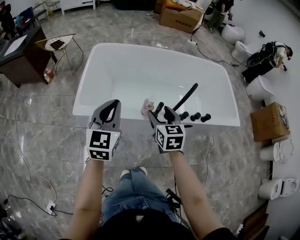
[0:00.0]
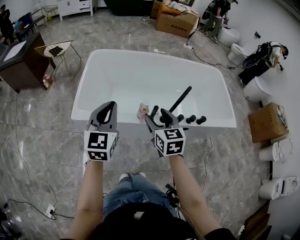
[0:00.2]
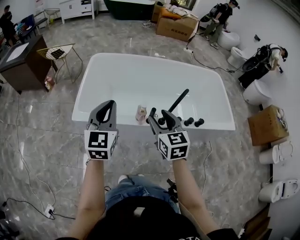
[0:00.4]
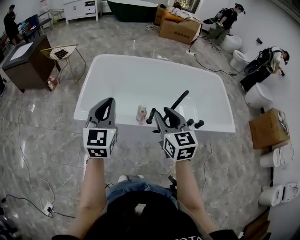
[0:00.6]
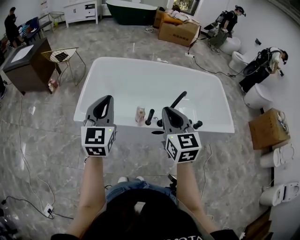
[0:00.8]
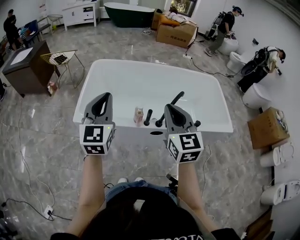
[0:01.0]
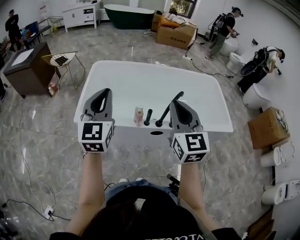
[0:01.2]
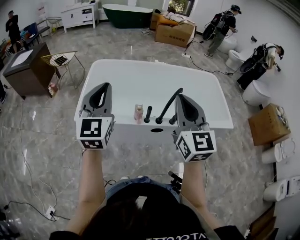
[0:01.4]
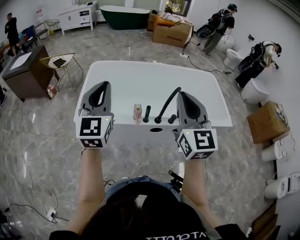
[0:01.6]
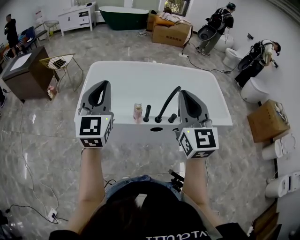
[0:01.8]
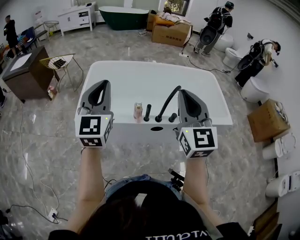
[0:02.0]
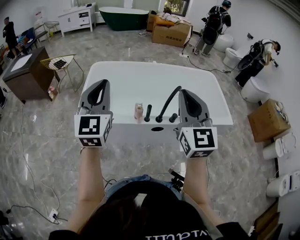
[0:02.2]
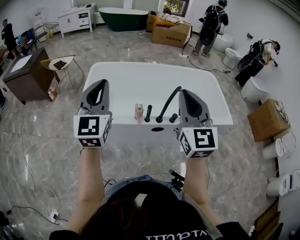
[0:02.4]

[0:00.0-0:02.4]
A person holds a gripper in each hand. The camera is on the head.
0:00.0 to 0:01.2: The left gripper heads upward, covering some 15 cm. The right gripper shifts roughly 25 cm upward and backward, swivels approximately 30 degrees, and closes its fingers.
0:01.2 to 0:02.4: The right gripper moves upward, approximately 5 cm; the left gripper shifts by about 5 cm.

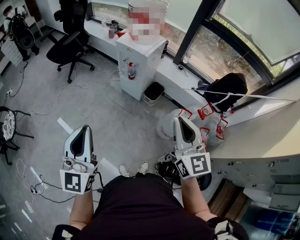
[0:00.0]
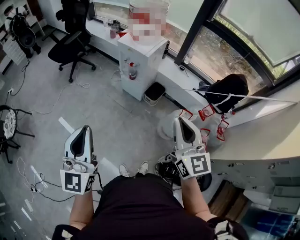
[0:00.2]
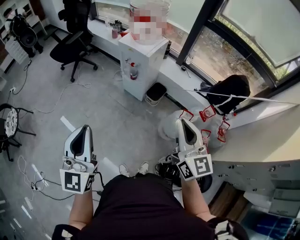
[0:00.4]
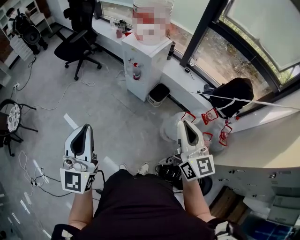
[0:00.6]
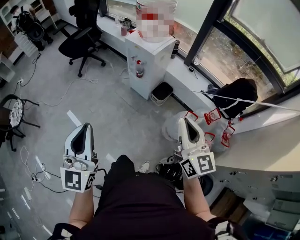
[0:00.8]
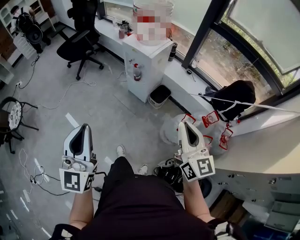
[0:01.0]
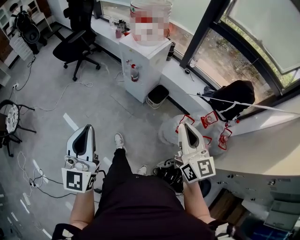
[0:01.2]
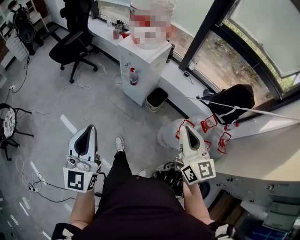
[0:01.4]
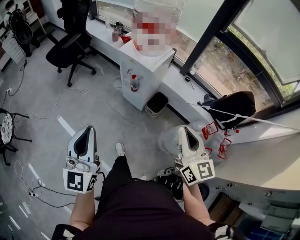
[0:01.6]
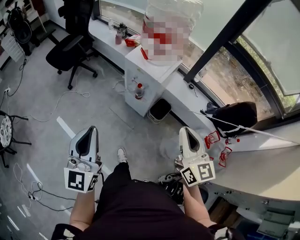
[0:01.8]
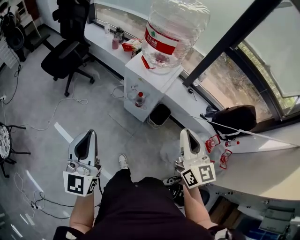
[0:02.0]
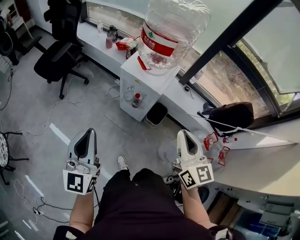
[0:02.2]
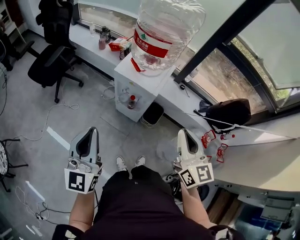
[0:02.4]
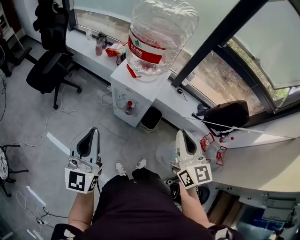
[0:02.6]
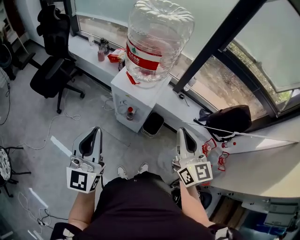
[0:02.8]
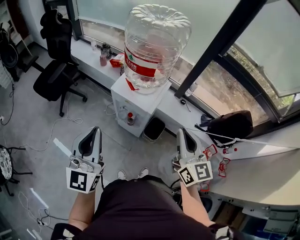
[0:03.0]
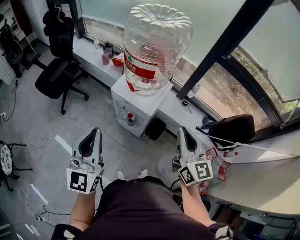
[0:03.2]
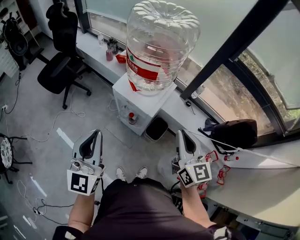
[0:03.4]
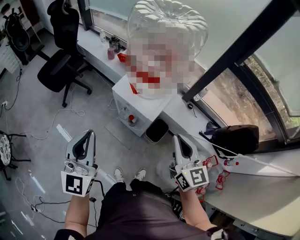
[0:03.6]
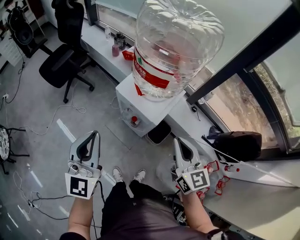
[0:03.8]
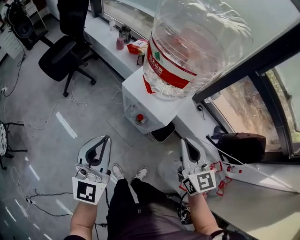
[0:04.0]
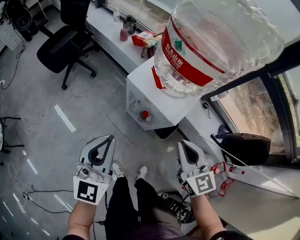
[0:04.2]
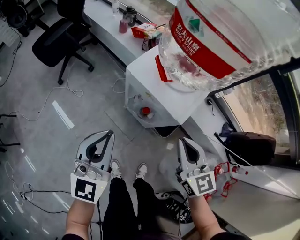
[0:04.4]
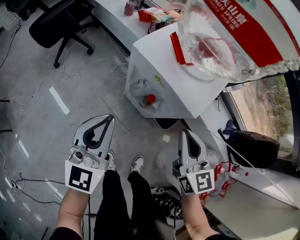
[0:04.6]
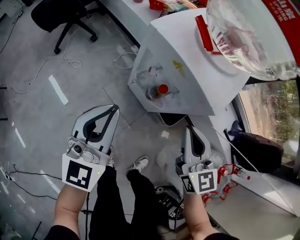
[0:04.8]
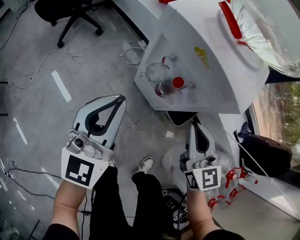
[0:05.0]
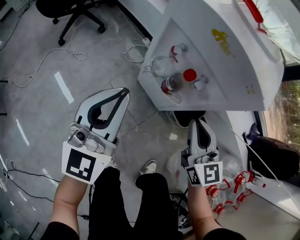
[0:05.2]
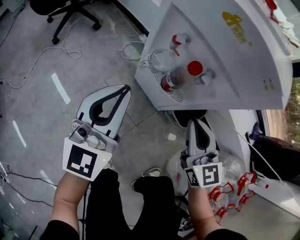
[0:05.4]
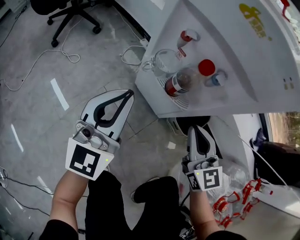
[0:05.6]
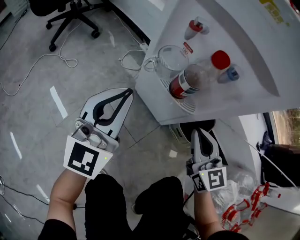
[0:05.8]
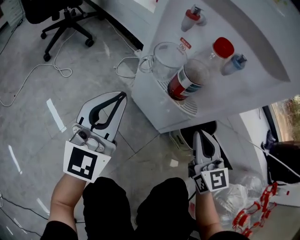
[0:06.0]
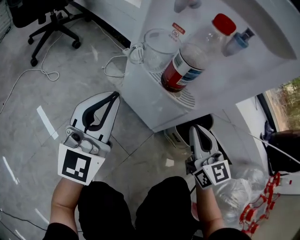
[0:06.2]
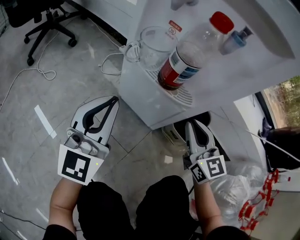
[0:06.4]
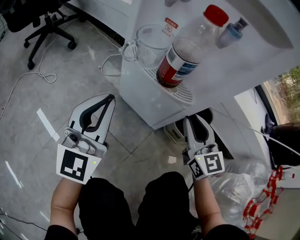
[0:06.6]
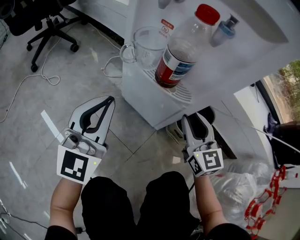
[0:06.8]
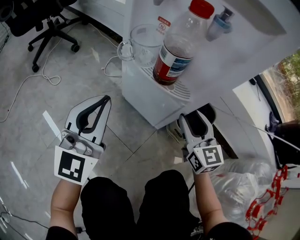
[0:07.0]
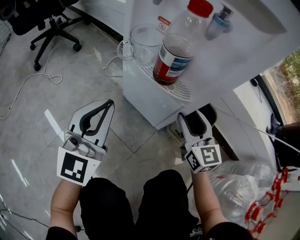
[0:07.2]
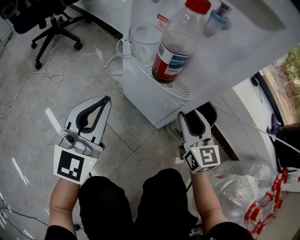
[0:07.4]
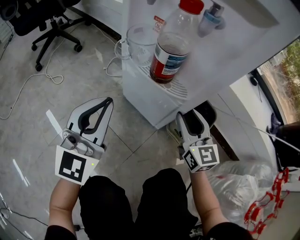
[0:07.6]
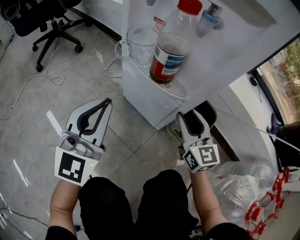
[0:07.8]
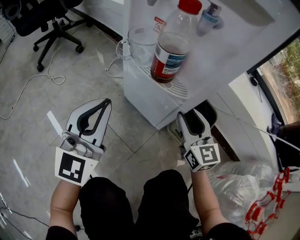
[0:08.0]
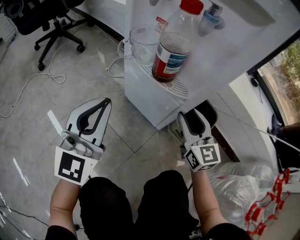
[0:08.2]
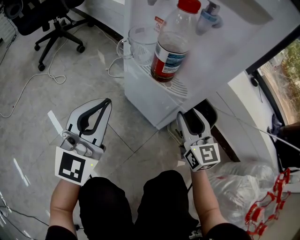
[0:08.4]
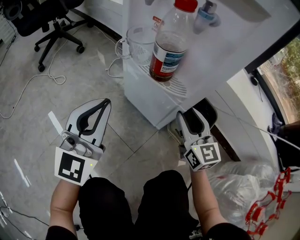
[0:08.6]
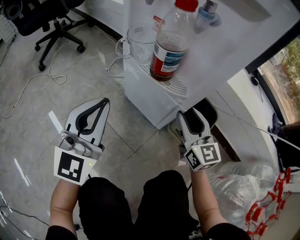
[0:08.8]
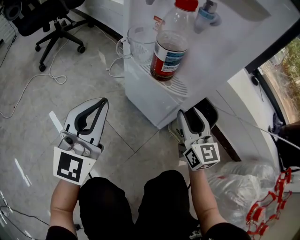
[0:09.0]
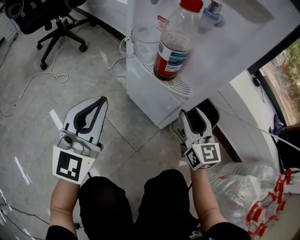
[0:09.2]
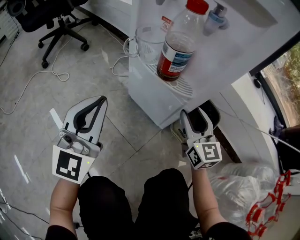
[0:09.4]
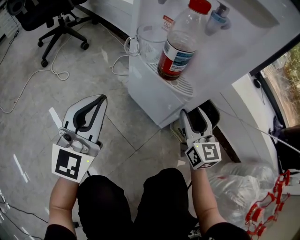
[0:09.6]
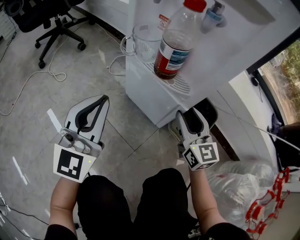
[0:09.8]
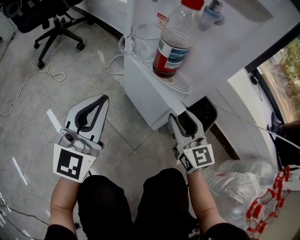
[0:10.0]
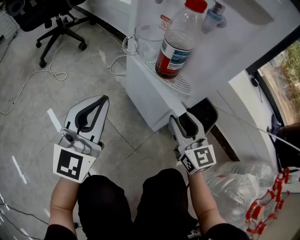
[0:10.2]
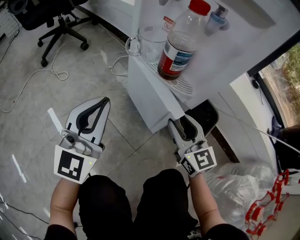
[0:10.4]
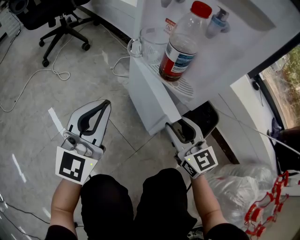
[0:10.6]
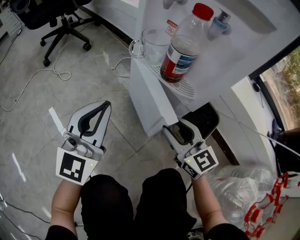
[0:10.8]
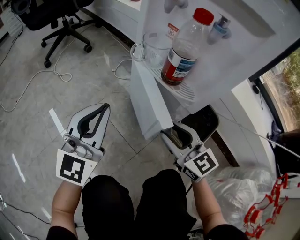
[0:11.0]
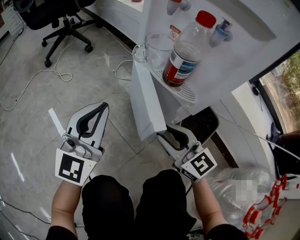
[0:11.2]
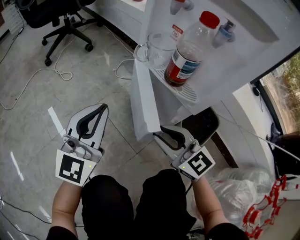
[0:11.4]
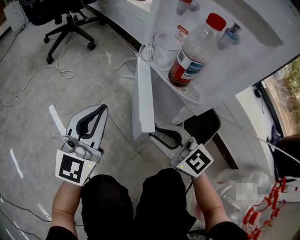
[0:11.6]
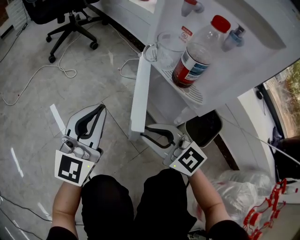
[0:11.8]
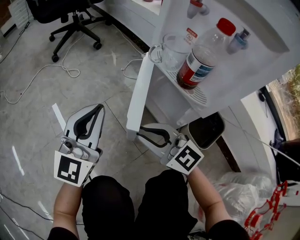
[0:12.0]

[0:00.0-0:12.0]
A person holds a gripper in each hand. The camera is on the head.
0:00.0 to 0:01.6: Both grippers travel together forward, some 15 cm.
0:01.6 to 0:03.0: Both grippers travel together forward, roughly 25 cm.
0:03.0 to 0:04.4: The two grippers go approximately 25 cm downward and forward. The right gripper turns by approximately 20 degrees.
0:04.4 to 0:06.0: The two grippers go roughly 40 cm downward.
0:06.0 to 0:07.6: The left gripper ends up approximately 5 cm from where it was. The right gripper shifts about 5 cm downward, and opens up.
0:07.6 to 0:09.0: The grippers make only small movements.
0:09.0 to 0:10.4: The right gripper goes approximately 5 cm to the left.
0:10.4 to 0:12.0: The left gripper travels to the left by some 5 cm, while the right gripper moves to the left, roughly 20 cm, rotates approximately 40 degrees, and closes up.

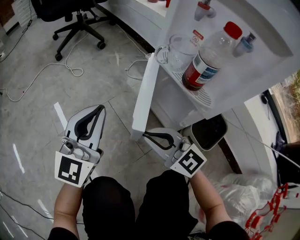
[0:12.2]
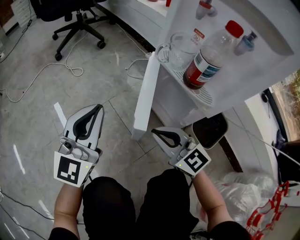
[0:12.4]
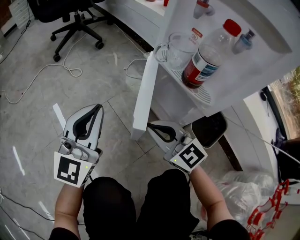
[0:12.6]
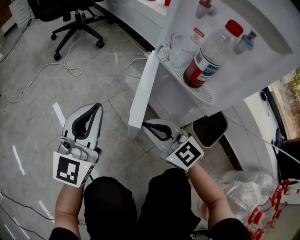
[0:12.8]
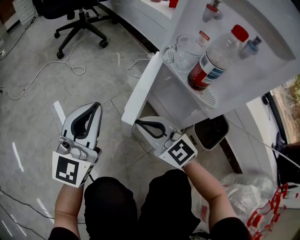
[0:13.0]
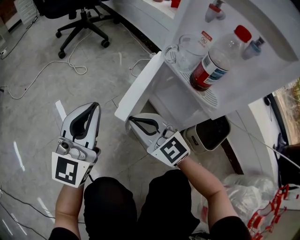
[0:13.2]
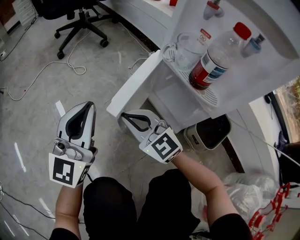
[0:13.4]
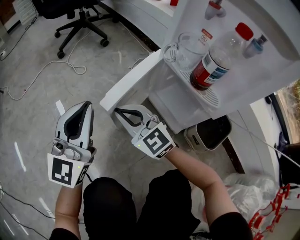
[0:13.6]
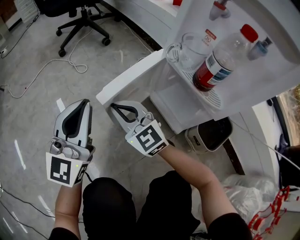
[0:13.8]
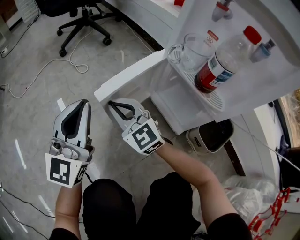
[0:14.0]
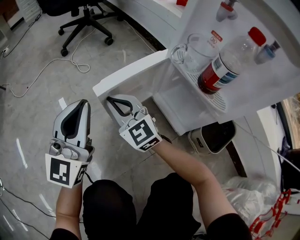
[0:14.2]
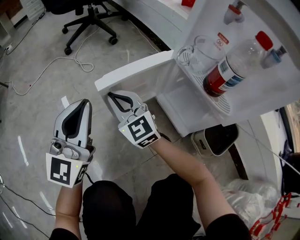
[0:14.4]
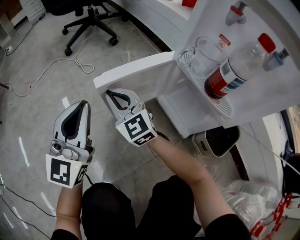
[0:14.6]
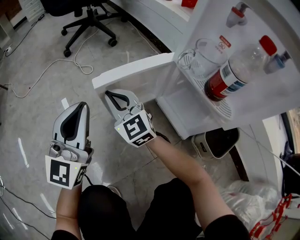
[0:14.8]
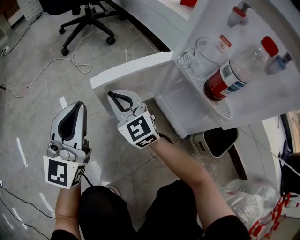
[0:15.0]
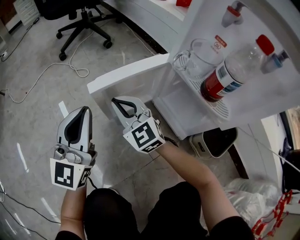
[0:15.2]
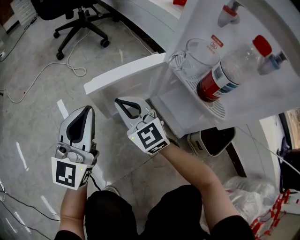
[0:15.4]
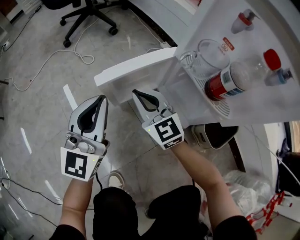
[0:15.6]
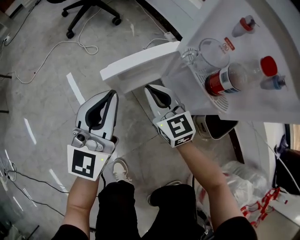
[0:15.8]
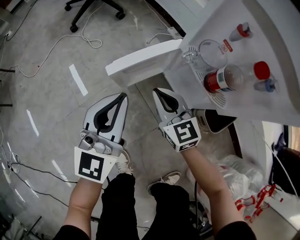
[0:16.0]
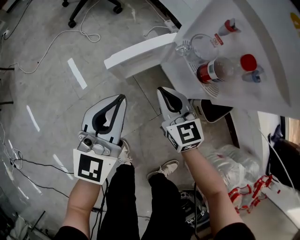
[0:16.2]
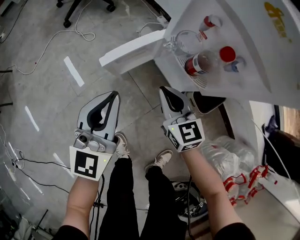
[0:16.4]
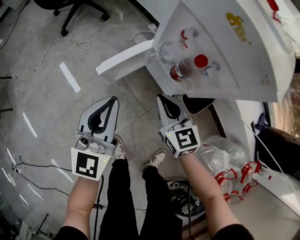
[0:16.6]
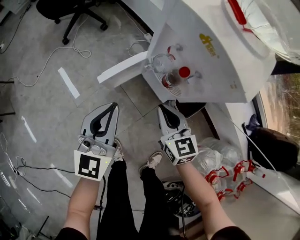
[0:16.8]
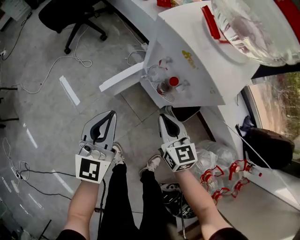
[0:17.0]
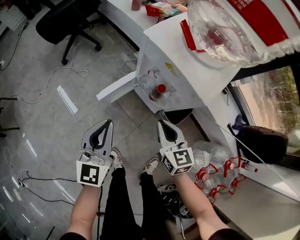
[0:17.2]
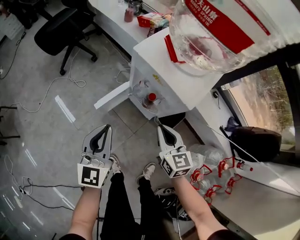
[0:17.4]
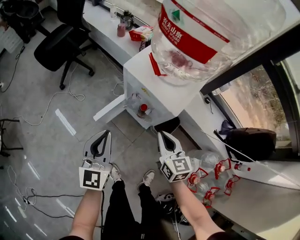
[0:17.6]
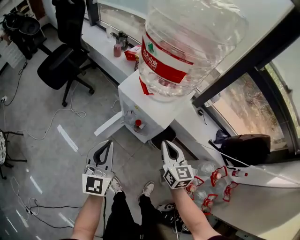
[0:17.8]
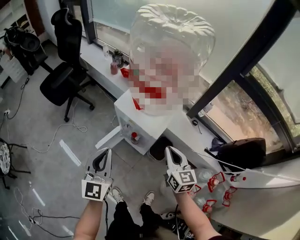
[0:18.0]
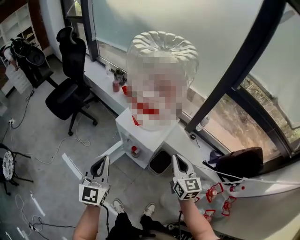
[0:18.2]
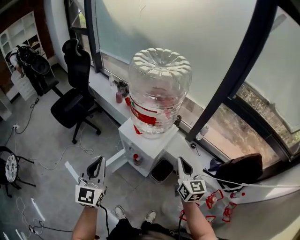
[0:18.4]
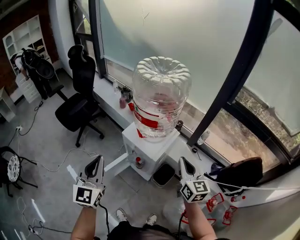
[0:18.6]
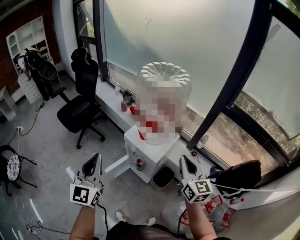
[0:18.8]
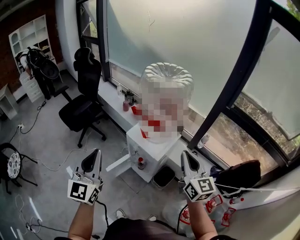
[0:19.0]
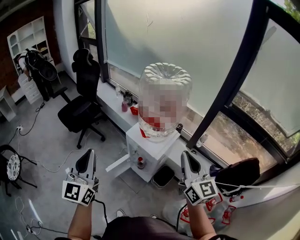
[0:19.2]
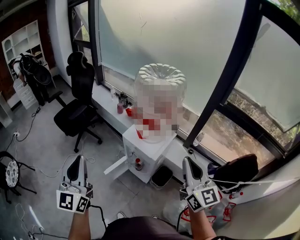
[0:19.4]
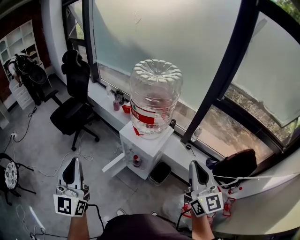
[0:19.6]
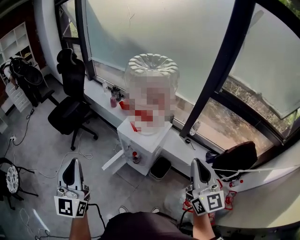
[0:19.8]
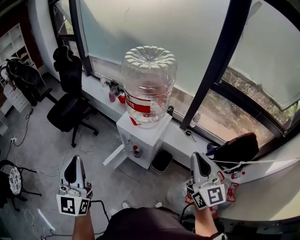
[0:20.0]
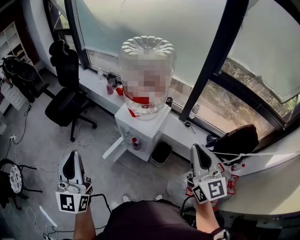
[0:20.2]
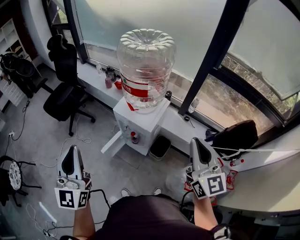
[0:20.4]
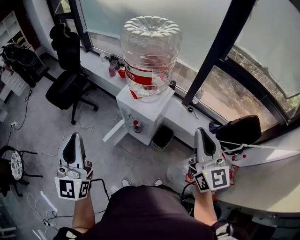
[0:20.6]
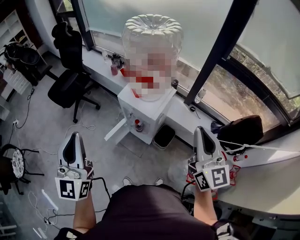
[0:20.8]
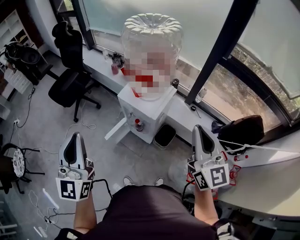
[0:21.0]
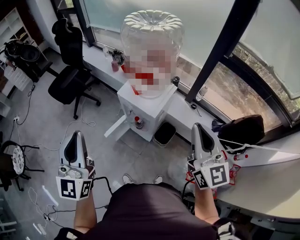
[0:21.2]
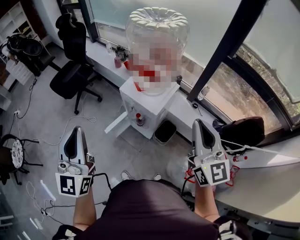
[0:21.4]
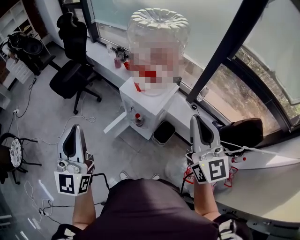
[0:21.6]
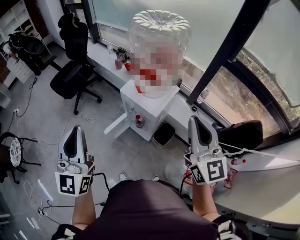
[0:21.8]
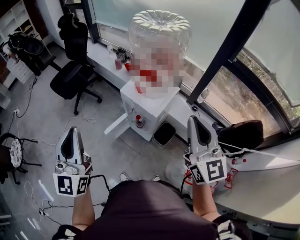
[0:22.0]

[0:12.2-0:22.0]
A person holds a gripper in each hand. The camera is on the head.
0:12.2 to 0:13.6: The right gripper moves forward and to the left, approximately 15 cm.
0:13.6 to 0:15.0: The left gripper ends up about 5 cm from where it was, while the right gripper heads forward, covering about 10 cm.
0:15.0 to 0:16.4: The left gripper is displaced upward, to the right and backward by some 15 cm. The right gripper goes roughly 25 cm to the right, upward and backward, and turns by roughly 30 degrees.
0:16.4 to 0:17.8: The right gripper travels upward and to the right by approximately 40 cm, and turns by approximately 30 degrees. Meanwhile the left gripper moves upward, approximately 30 cm.
0:17.8 to 0:19.2: Both grippers travel together upward, about 30 cm. The right gripper turns by about 30 degrees.
0:19.2 to 0:20.6: The right gripper goes approximately 5 cm backward.
0:20.6 to 0:22.0: The right gripper ends up some 5 cm from where it was.
